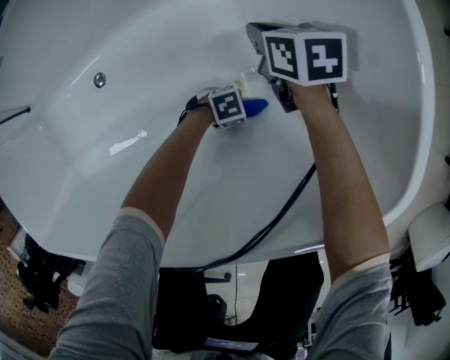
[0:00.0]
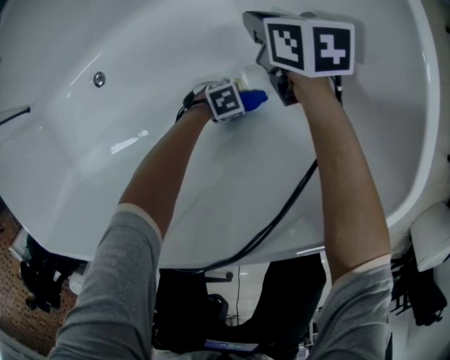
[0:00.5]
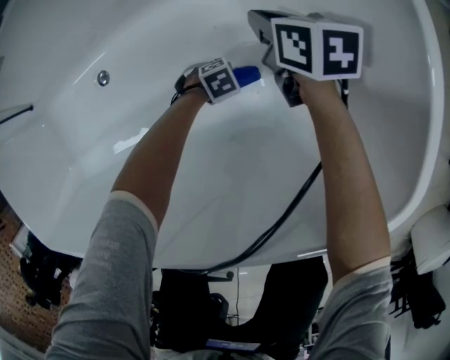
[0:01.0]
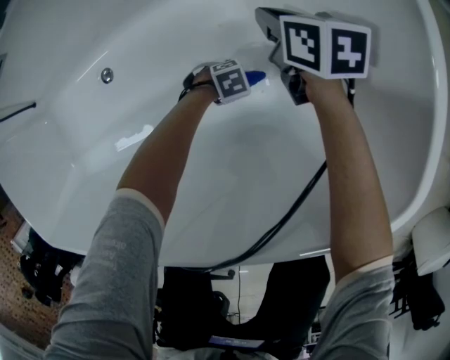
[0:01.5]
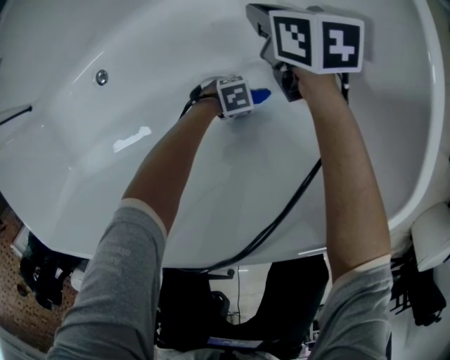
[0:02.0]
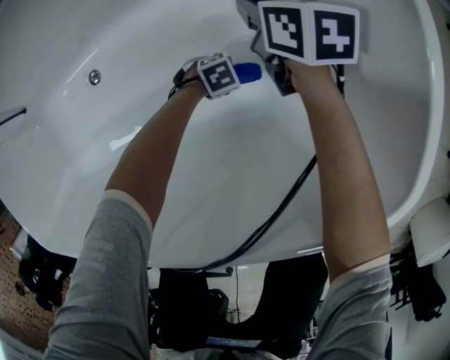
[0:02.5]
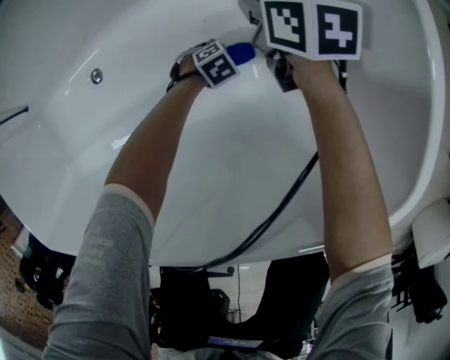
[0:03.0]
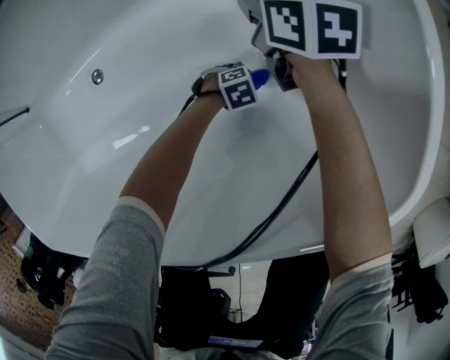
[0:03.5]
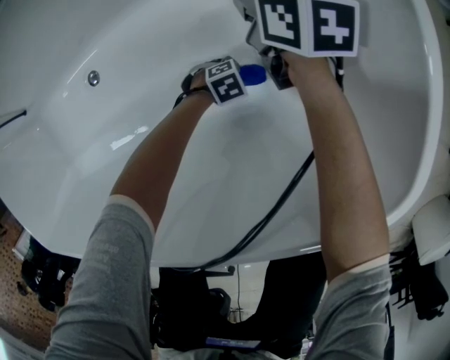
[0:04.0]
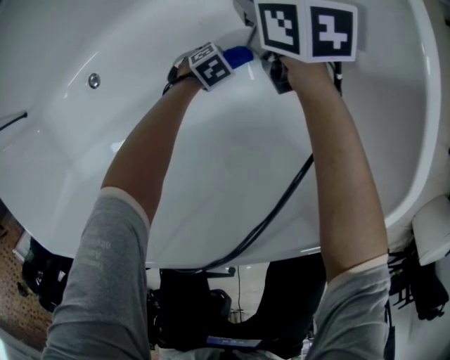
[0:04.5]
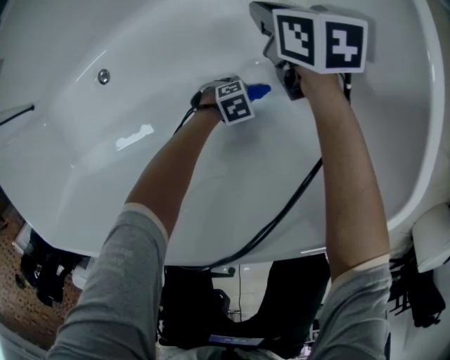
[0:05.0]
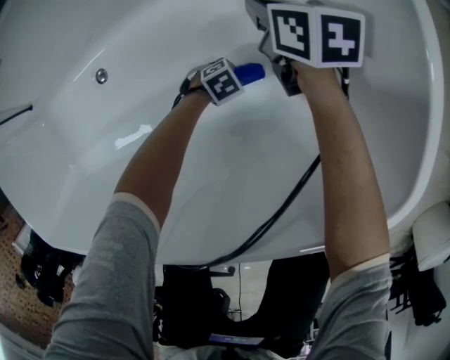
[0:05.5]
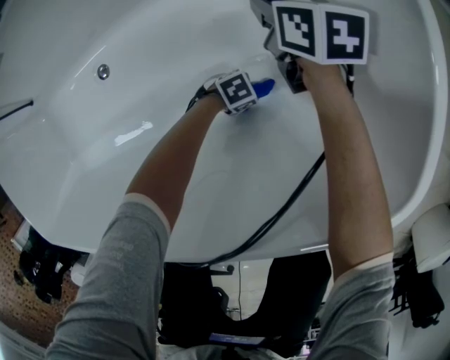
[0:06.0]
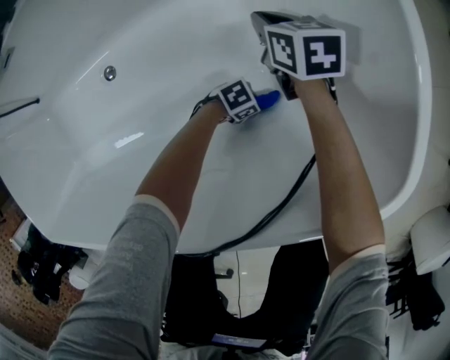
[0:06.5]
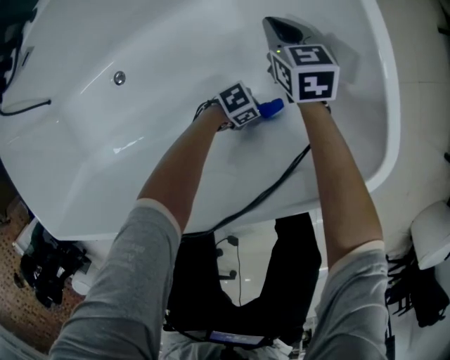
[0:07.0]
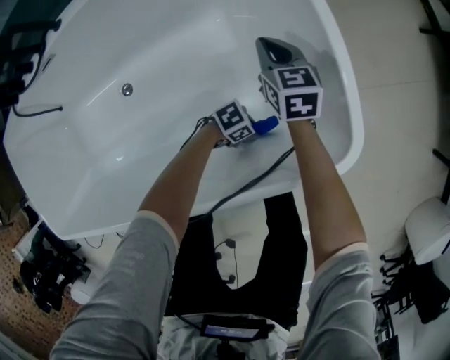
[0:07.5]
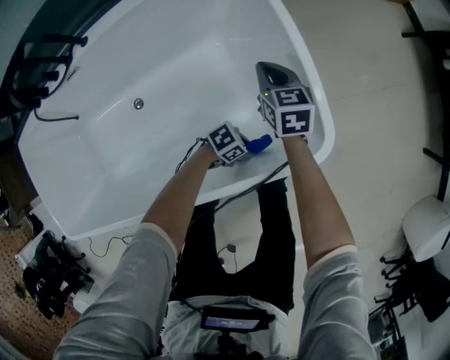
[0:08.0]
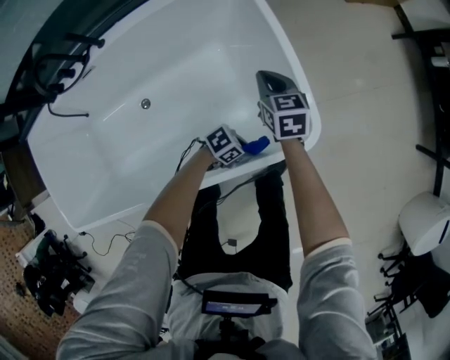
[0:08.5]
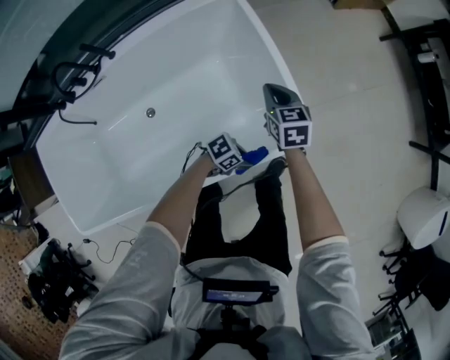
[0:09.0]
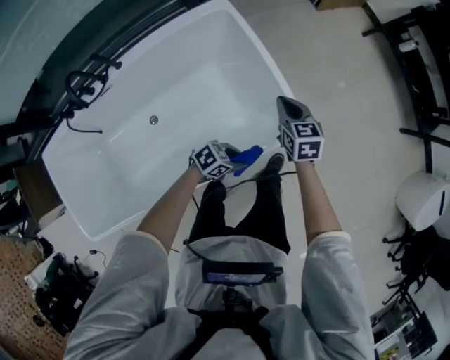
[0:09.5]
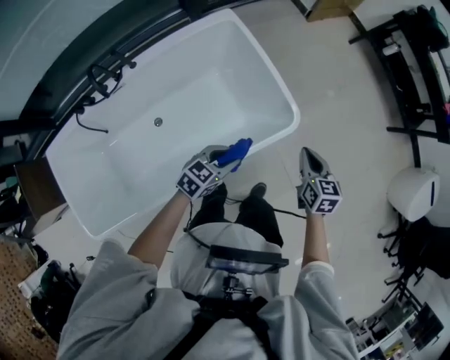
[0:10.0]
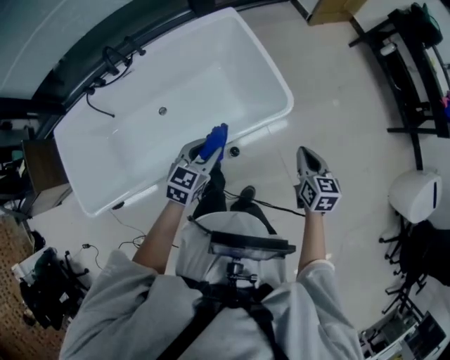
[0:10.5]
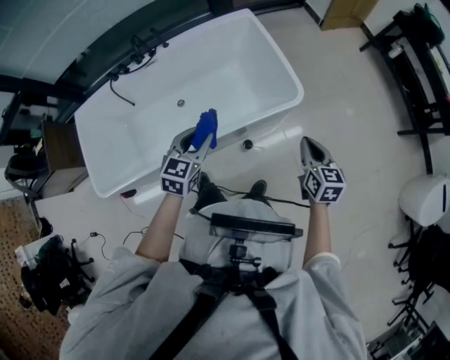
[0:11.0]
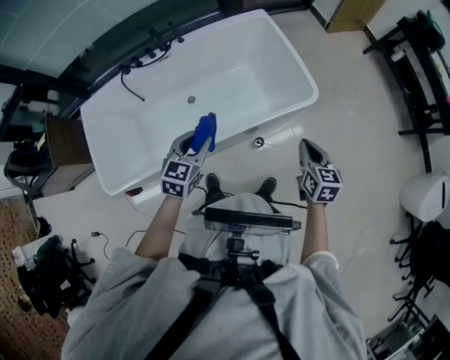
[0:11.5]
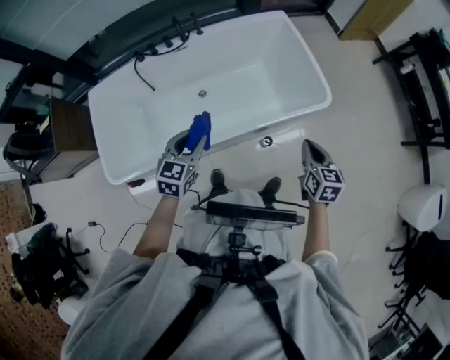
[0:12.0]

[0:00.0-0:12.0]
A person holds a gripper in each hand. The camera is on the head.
0:04.0 to 0:06.0: The left gripper shifts by about 5 cm, and swivels roughly 20 degrees.
0:06.0 to 0:08.0: Both grippers travel together upward, about 20 cm. The right gripper rotates approximately 20 degrees.
0:08.0 to 0:10.0: The left gripper shifts roughly 35 cm upward, and swivels about 40 degrees. Meanwhile the right gripper moves approximately 40 cm, and swivels some 20 degrees.
0:10.0 to 0:12.0: The right gripper ends up some 25 cm from where it was. The left gripper changes place by about 35 cm, and rotates approximately 40 degrees.

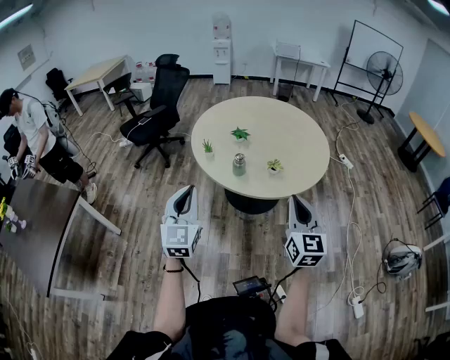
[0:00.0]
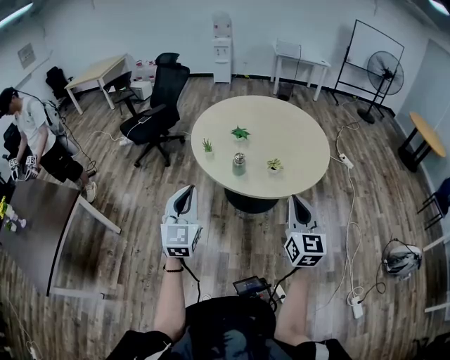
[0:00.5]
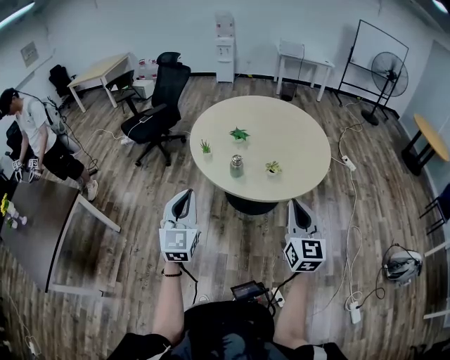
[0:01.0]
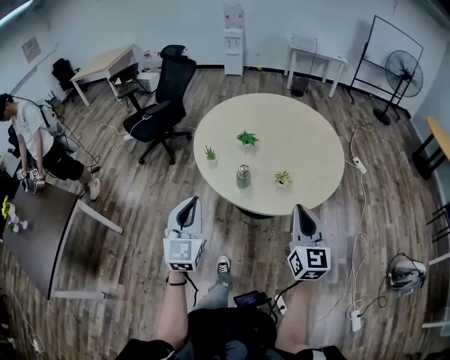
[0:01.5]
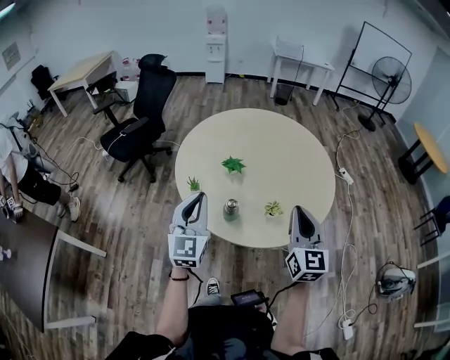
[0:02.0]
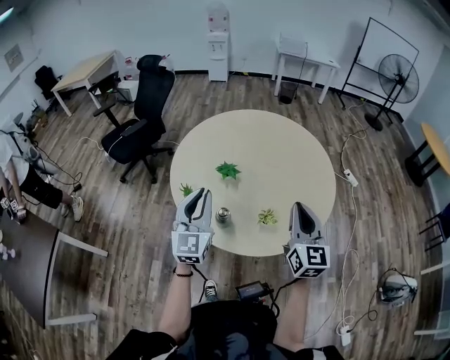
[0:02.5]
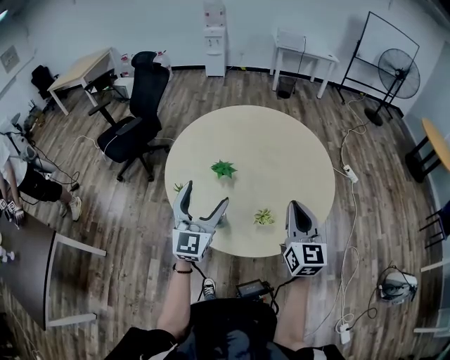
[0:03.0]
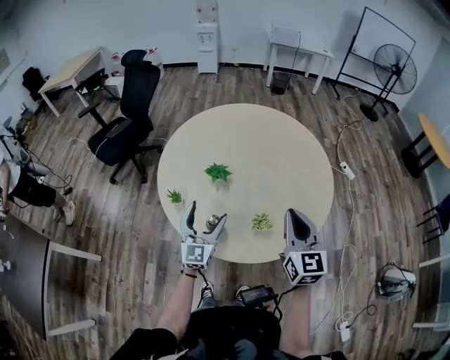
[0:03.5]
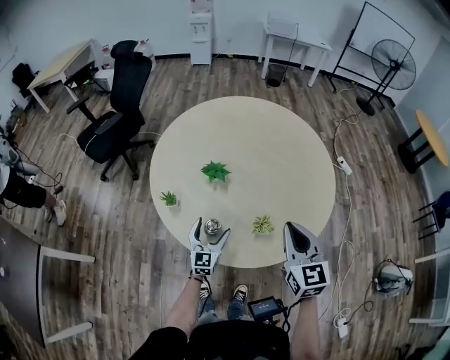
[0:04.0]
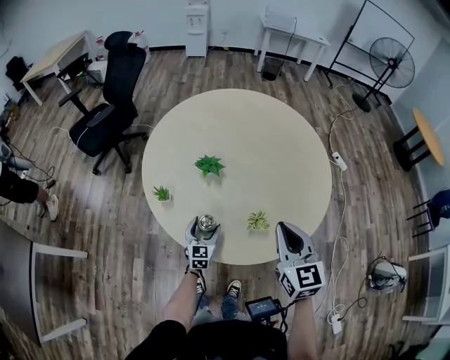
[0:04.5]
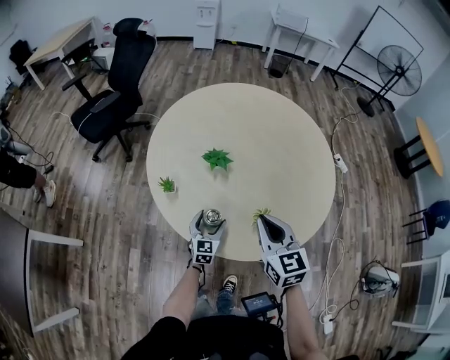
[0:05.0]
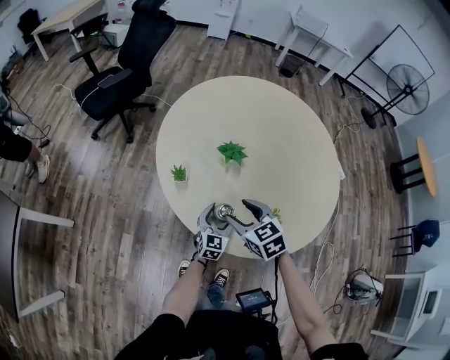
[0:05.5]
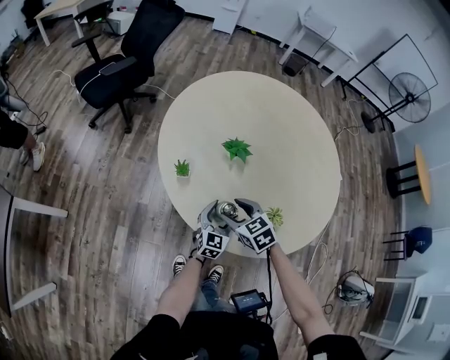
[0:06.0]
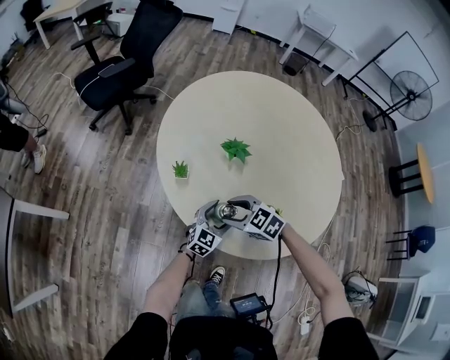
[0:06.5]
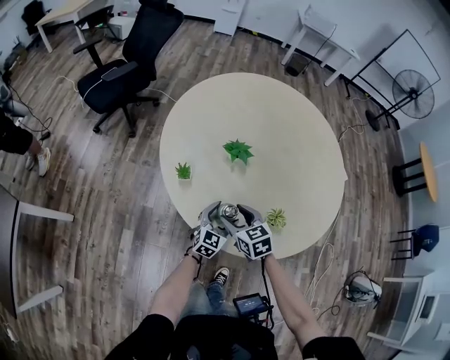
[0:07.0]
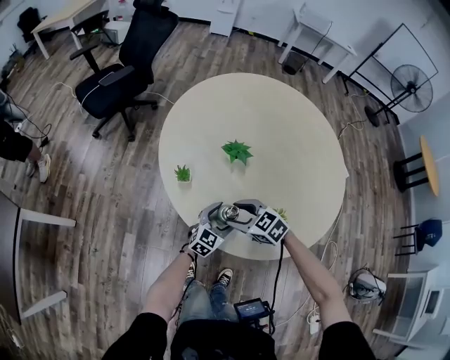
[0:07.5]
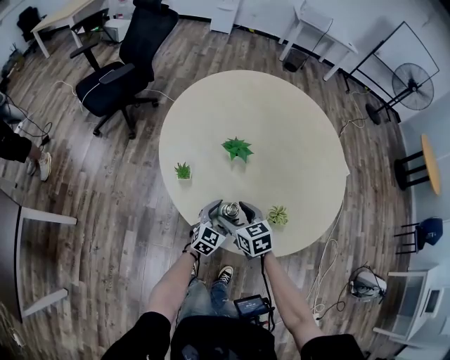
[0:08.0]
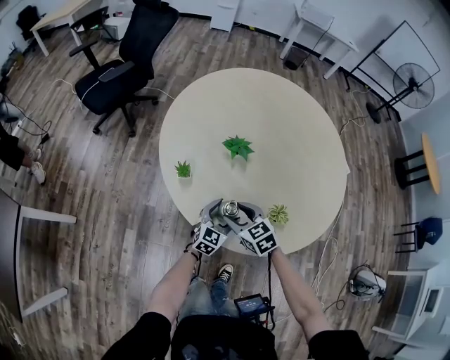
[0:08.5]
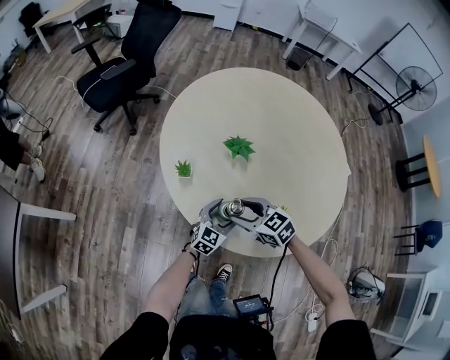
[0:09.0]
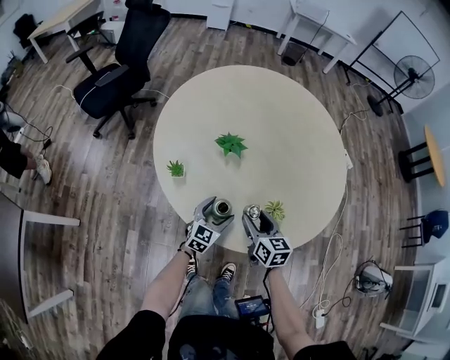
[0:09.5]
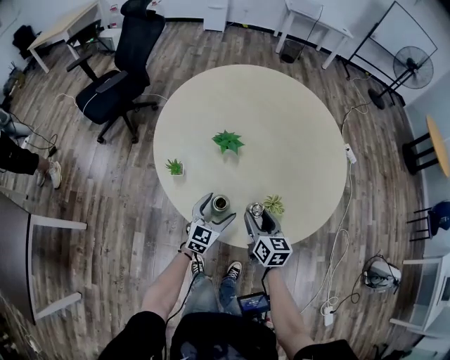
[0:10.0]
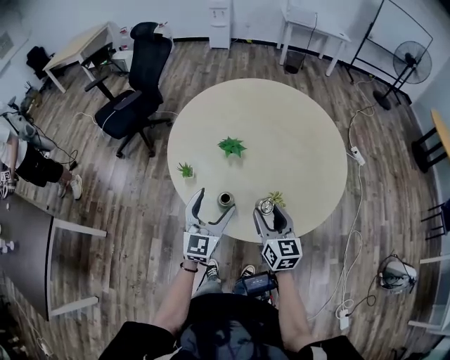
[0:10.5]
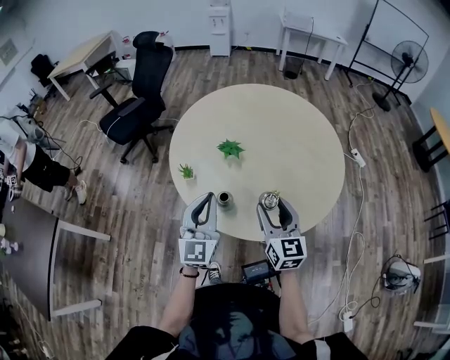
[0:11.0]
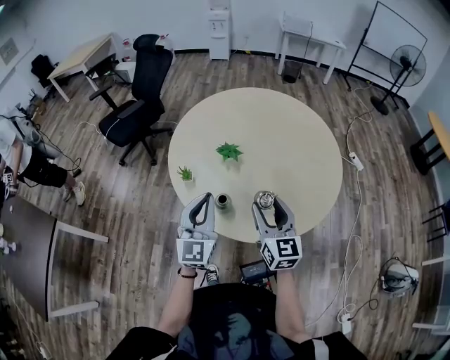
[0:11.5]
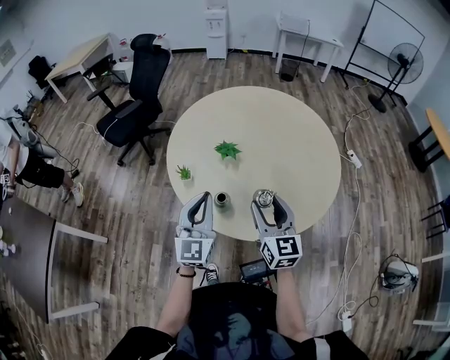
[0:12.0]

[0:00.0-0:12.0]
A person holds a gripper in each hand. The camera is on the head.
0:00.0 to 0:02.0: The two grippers go approximately 25 cm forward.
0:02.0 to 0:04.0: The right gripper moves forward and downward, about 10 cm, while the left gripper moves downward, some 30 cm, and opens its fingers.
0:04.0 to 0:06.0: The right gripper moves downward and to the left, some 30 cm, angles its fingers downward, by approximately 30 degrees, and opens. The left gripper heads downward, covering some 5 cm.
0:08.0 to 0:10.0: The right gripper heads to the right, covering roughly 10 cm, and swivels some 30 degrees.
0:10.0 to 0:12.0: Both grippers move upward, approximately 25 cm. The left gripper turns by roughly 30 degrees, and closes its fingers. The right gripper changes its angle by about 30 degrees.

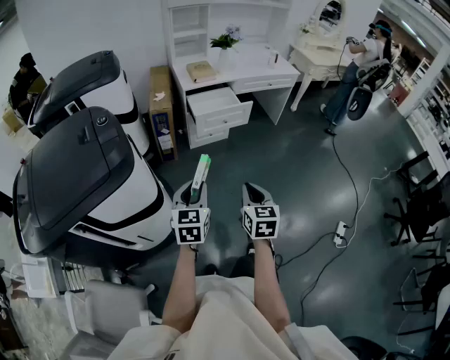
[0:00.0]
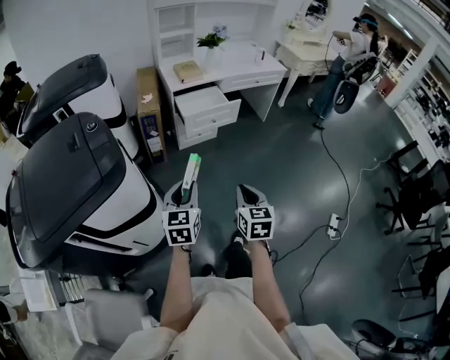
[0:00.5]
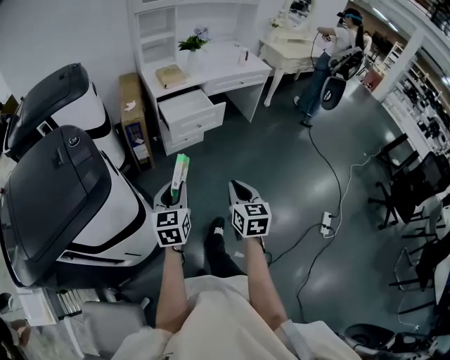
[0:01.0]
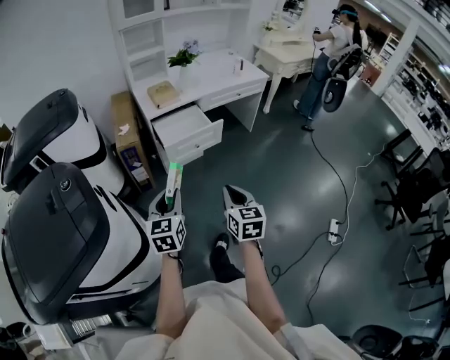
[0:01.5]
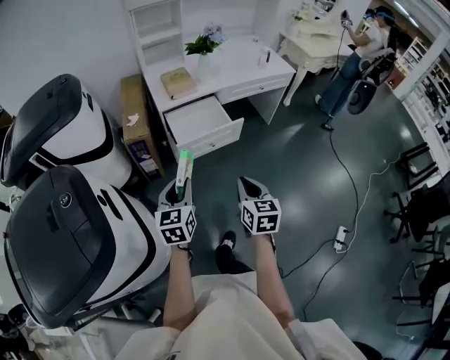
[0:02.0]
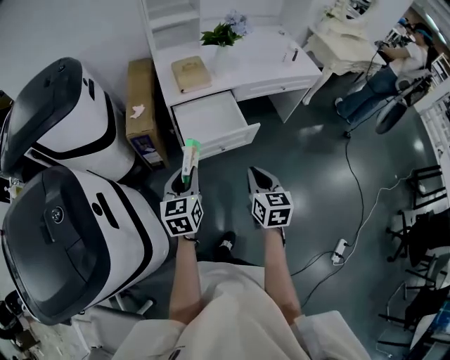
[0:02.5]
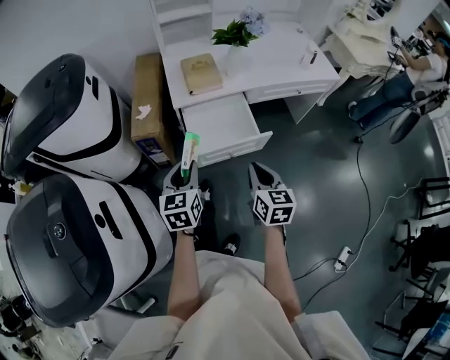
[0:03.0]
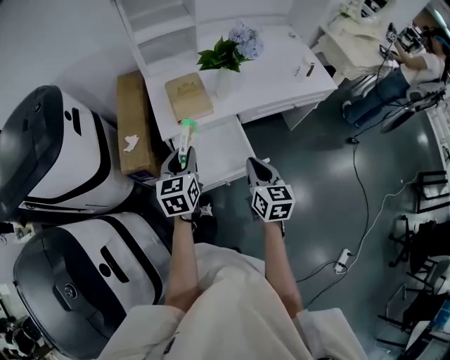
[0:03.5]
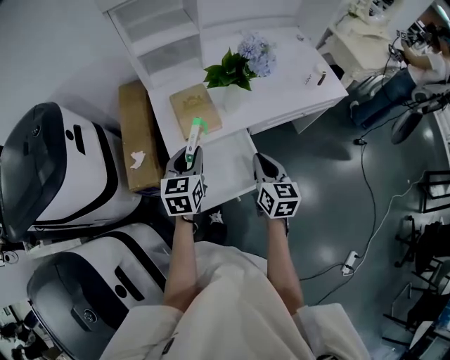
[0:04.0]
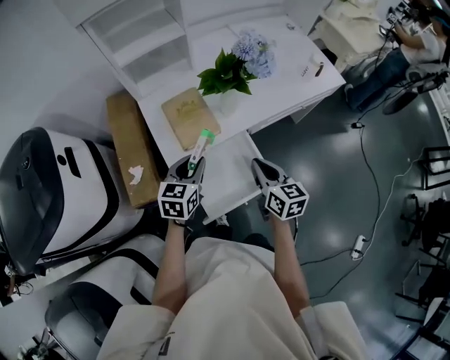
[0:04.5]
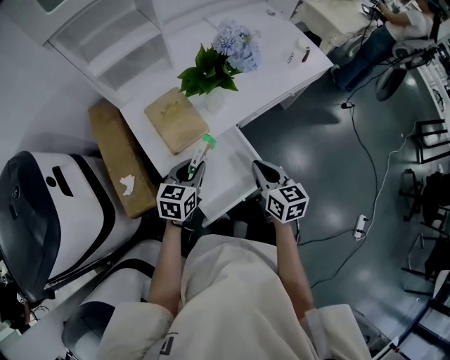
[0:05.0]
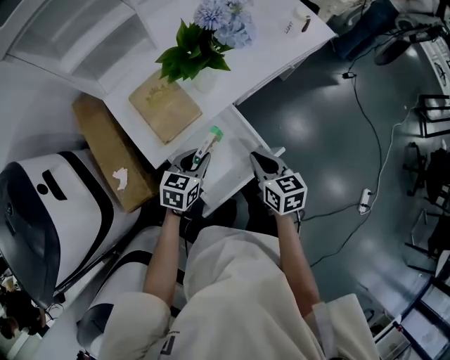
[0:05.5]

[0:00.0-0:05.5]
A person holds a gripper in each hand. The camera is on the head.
0:00.0 to 0:02.0: The two grippers go about 30 cm forward.
0:02.0 to 0:03.5: Both grippers move forward, roughly 40 cm.
0:03.5 to 0:05.5: The grippers both shift downward by some 15 cm. The left gripper turns by approximately 50 degrees.
